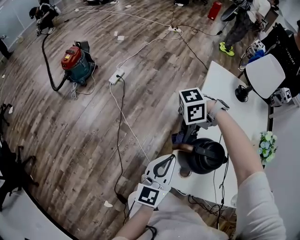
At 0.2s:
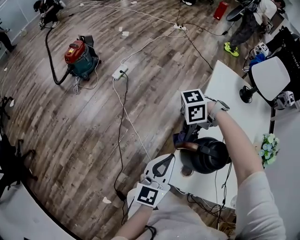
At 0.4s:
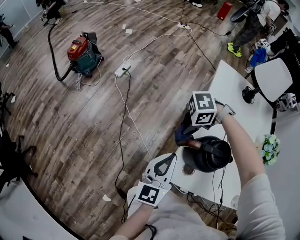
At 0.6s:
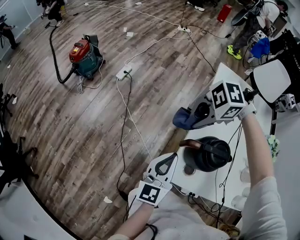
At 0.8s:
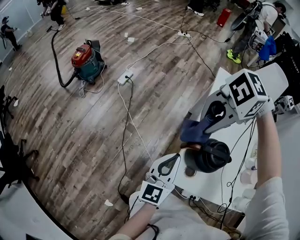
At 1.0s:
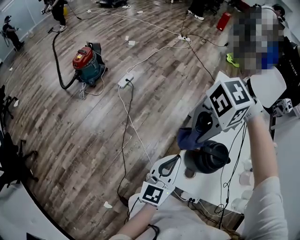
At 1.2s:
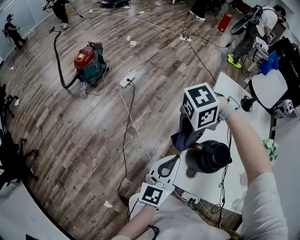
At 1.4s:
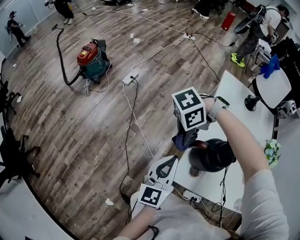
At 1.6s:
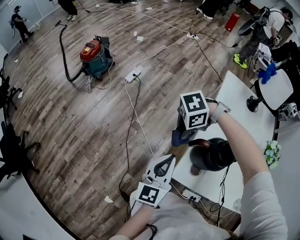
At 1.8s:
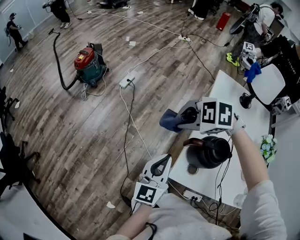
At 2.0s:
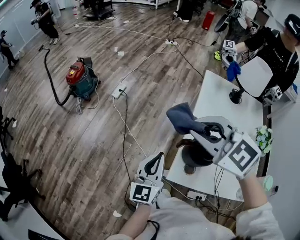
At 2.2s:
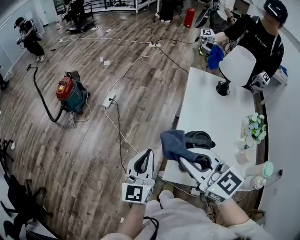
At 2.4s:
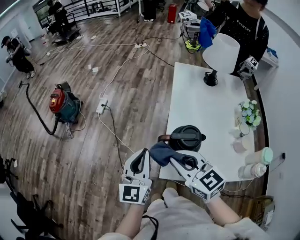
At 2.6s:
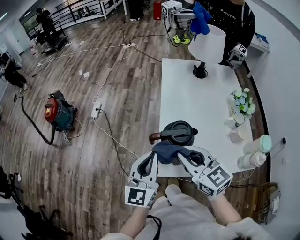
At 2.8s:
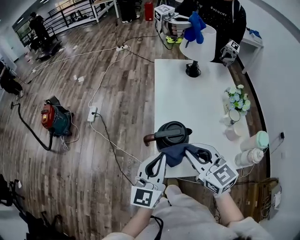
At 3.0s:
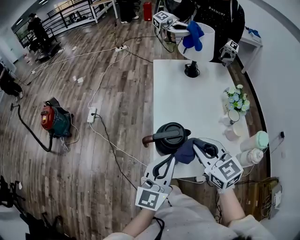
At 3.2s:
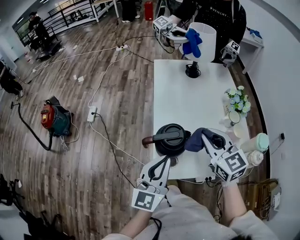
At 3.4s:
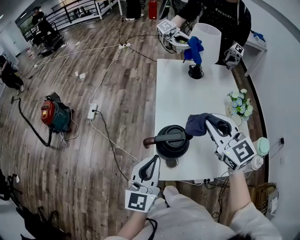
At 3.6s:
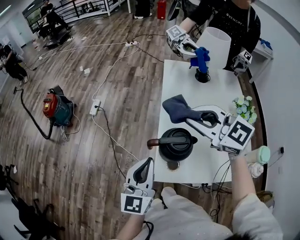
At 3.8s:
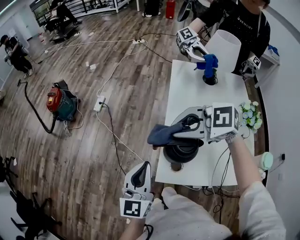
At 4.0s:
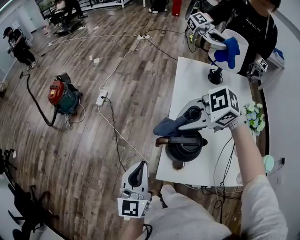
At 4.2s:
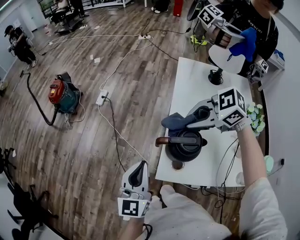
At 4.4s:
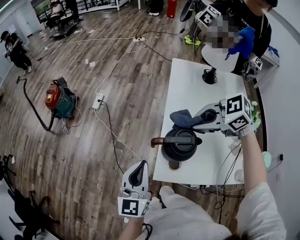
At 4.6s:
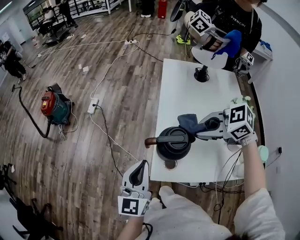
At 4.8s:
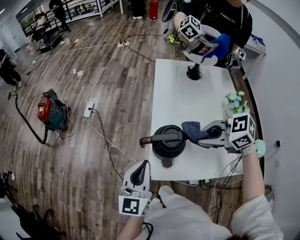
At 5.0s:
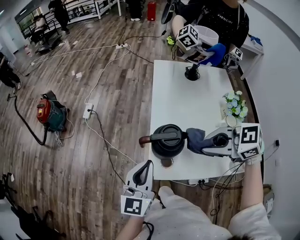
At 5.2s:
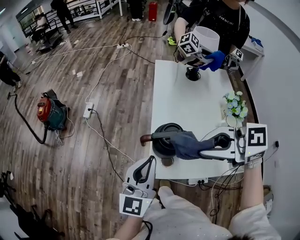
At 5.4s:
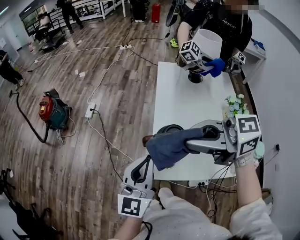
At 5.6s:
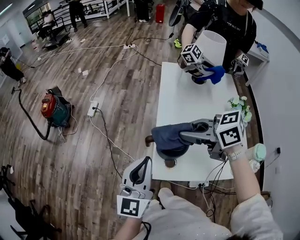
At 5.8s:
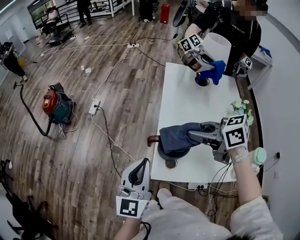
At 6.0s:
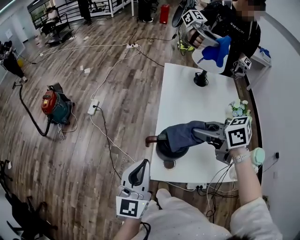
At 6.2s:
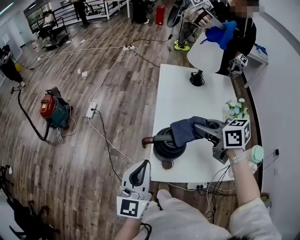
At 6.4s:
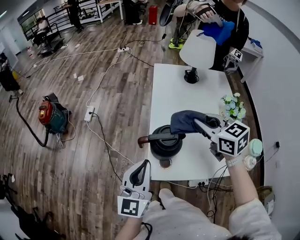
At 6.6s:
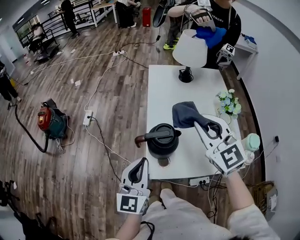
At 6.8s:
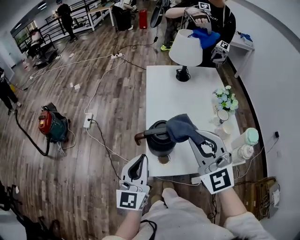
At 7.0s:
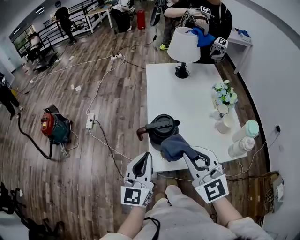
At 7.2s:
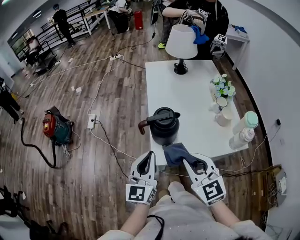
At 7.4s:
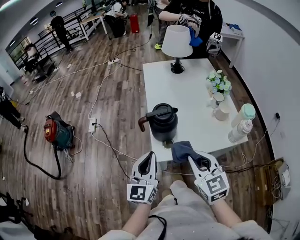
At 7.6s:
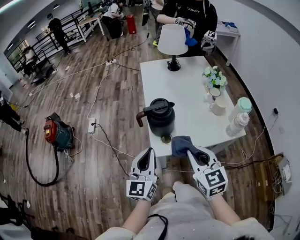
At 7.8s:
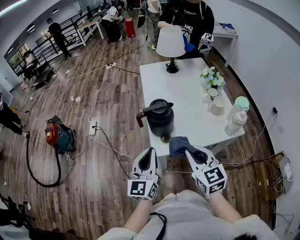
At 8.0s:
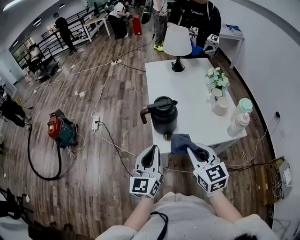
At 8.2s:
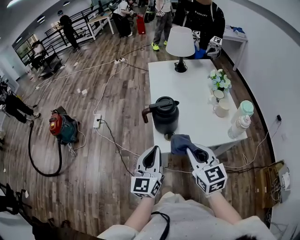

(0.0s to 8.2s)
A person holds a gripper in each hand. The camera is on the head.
0.0s - 1.6s: The right gripper goes up and down, about 20 cm each way, reversing 2 times, and swivels approximately 20 degrees, while the left gripper ends up some 5 cm from where it was.
1.6s - 3.2s: The left gripper shifts by roughly 15 cm, and changes its angle by roughly 30 degrees; the right gripper ends up roughly 30 cm from where it was, and tilts its fingers some 40 degrees upward.
3.2s - 5.0s: The right gripper reaches approximately 5 cm upward, then returns, and turns by about 50 degrees.
5.0s - 6.6s: The right gripper goes up and down, about 10 cm each way, reversing 2 times, and swivels approximately 60 degrees.
6.6s - 8.2s: The left gripper goes roughly 10 cm backward; the right gripper heads backward and downward, covering some 25 cm, and changes its angle by approximately 30 degrees.

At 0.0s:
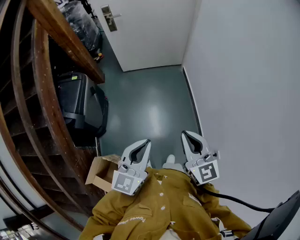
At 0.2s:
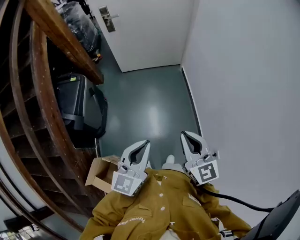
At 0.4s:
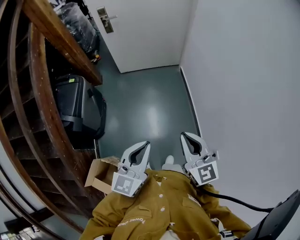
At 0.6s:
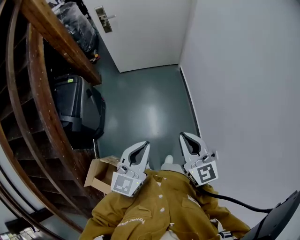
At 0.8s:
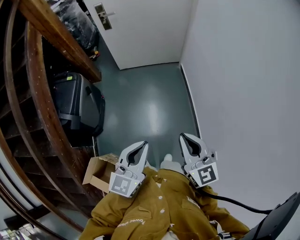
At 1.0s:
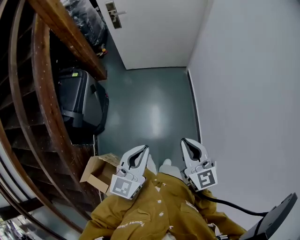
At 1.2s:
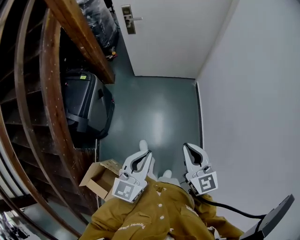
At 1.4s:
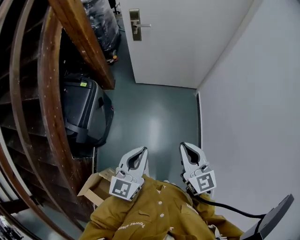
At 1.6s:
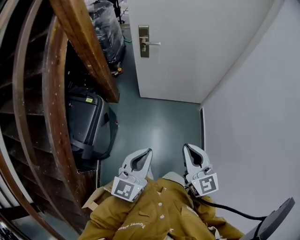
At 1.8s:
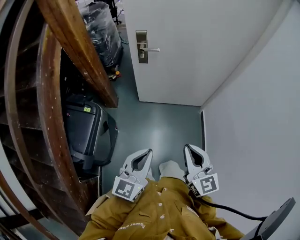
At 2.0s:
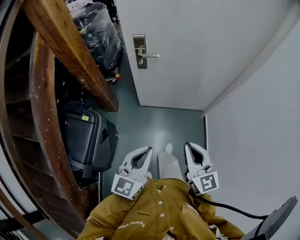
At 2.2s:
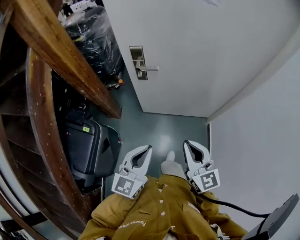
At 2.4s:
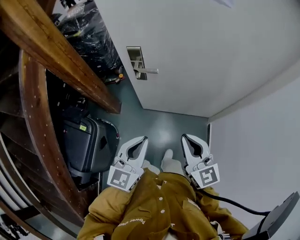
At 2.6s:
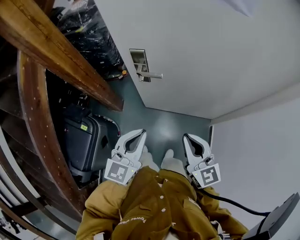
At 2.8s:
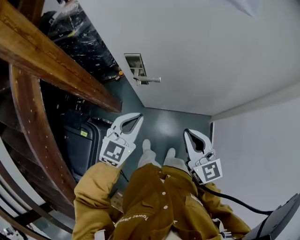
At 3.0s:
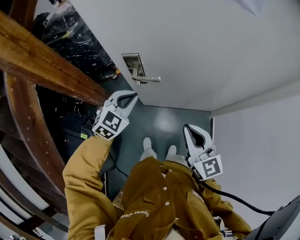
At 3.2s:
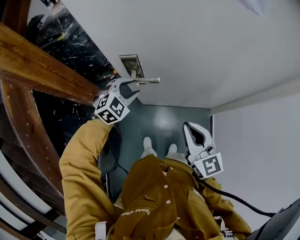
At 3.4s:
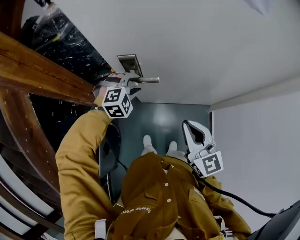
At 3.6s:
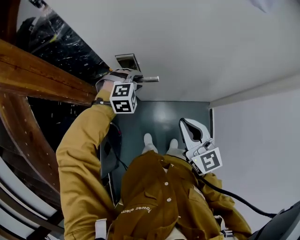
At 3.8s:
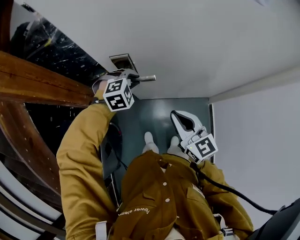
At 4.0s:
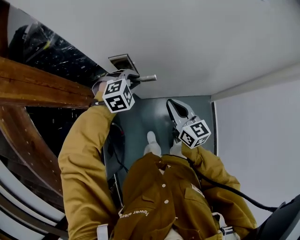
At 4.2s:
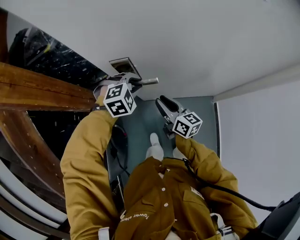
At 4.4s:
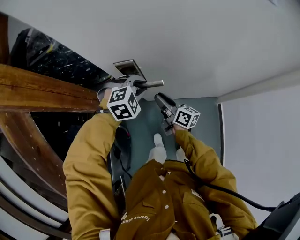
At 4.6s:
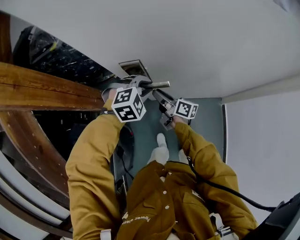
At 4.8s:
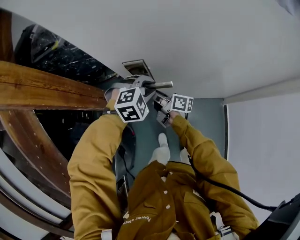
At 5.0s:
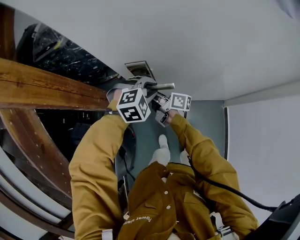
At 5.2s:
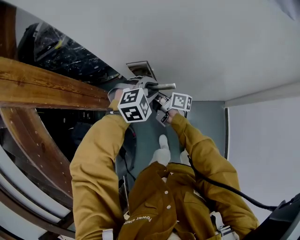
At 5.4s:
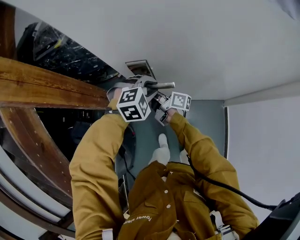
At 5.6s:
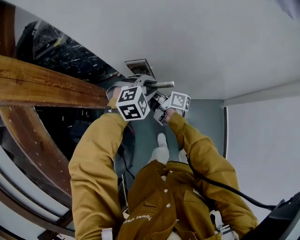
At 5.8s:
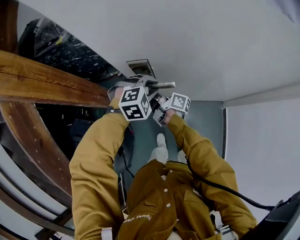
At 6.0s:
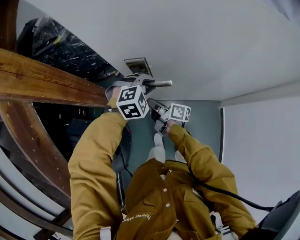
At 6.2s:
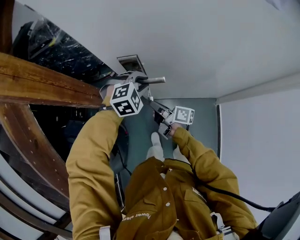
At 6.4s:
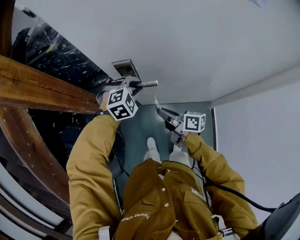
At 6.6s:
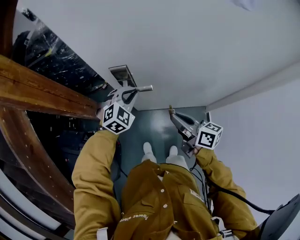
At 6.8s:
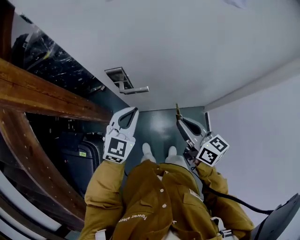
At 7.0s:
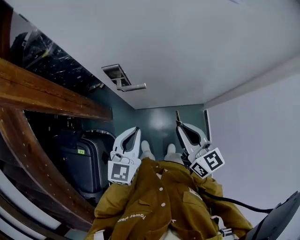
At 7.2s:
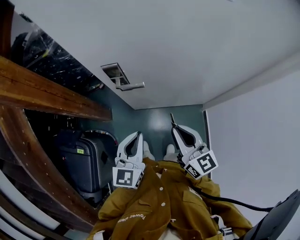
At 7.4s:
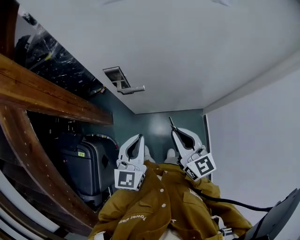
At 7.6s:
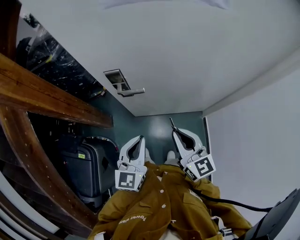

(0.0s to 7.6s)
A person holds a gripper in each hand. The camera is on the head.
0.0s - 1.6s: Both grippers travel together forward and to the left, roughly 35 cm.
1.6s - 3.0s: Both grippers are carried forward, about 60 cm. The left gripper tips its fingers downward by approximately 30 degrees.
3.0s - 4.6s: The right gripper is displaced downward, forward and to the left by roughly 30 cm, rolls clockwise, seen from behind, by about 60 degrees, and opens. The left gripper is displaced downward and forward by some 10 cm, turns by about 40 degrees, and opens its fingers.
4.6s - 6.0s: The right gripper shifts by some 5 cm, and closes.
6.0s - 7.6s: The left gripper is displaced backward and upward by approximately 25 cm, tips its fingers upward by approximately 50 degrees, and closes. The right gripper moves to the right, upward and backward, approximately 30 cm, and rotates around the line of its fingers by roughly 70 degrees, counterclockwise from behind.

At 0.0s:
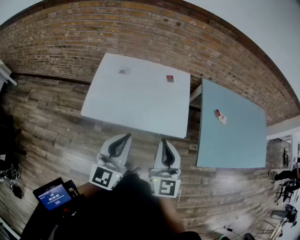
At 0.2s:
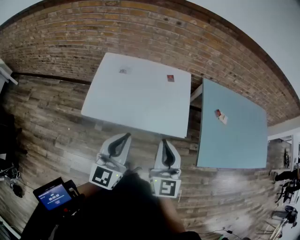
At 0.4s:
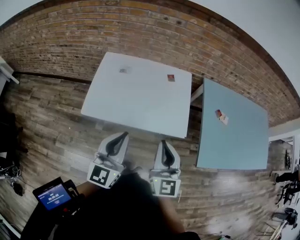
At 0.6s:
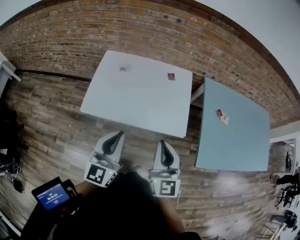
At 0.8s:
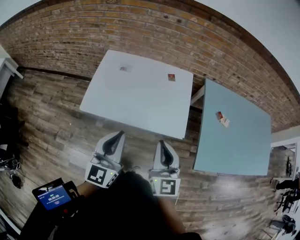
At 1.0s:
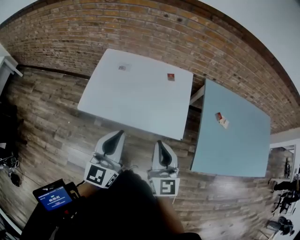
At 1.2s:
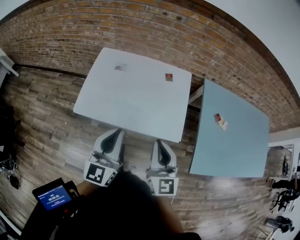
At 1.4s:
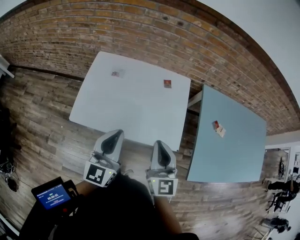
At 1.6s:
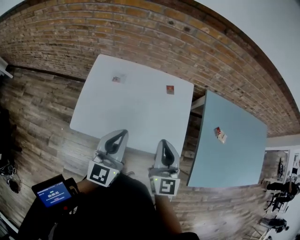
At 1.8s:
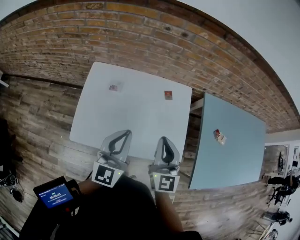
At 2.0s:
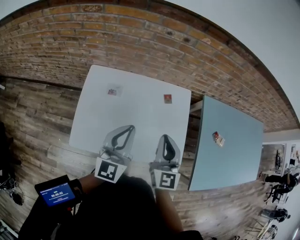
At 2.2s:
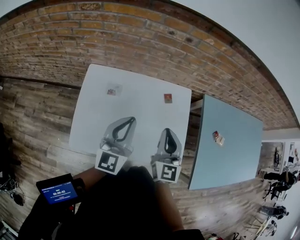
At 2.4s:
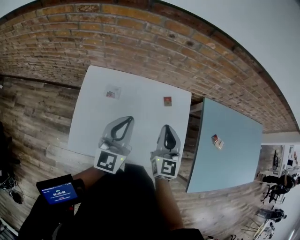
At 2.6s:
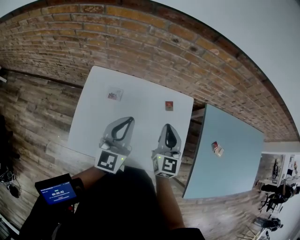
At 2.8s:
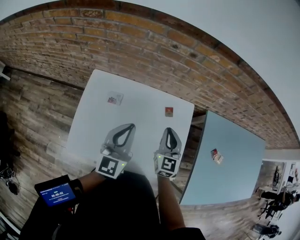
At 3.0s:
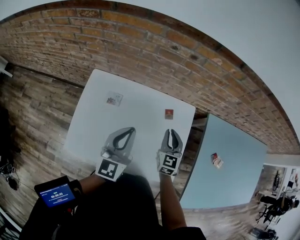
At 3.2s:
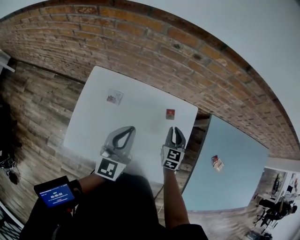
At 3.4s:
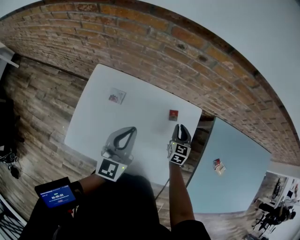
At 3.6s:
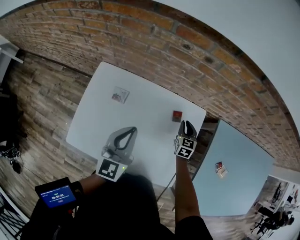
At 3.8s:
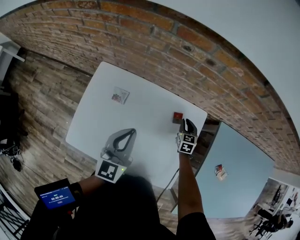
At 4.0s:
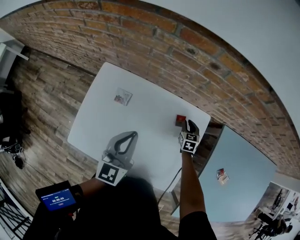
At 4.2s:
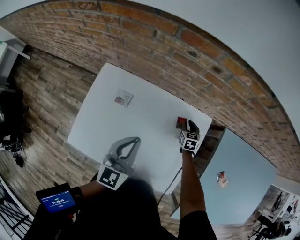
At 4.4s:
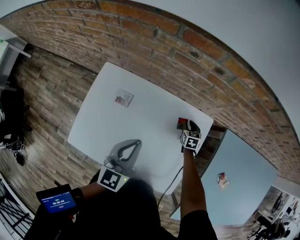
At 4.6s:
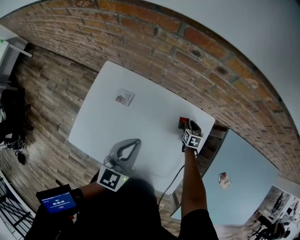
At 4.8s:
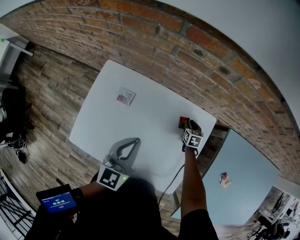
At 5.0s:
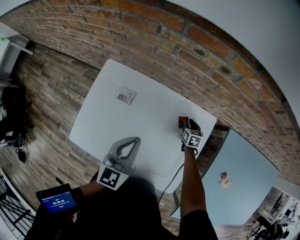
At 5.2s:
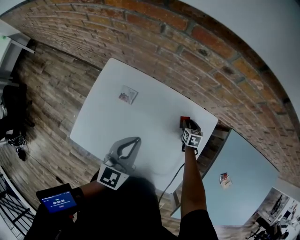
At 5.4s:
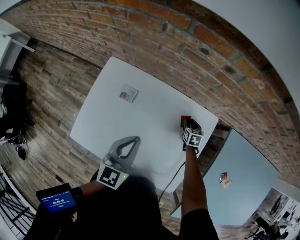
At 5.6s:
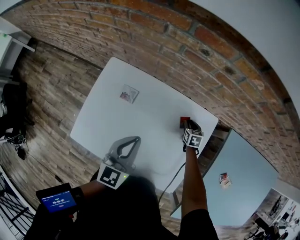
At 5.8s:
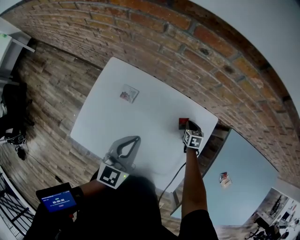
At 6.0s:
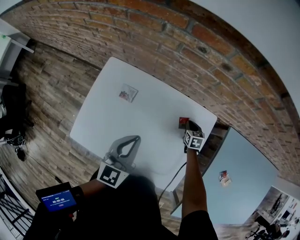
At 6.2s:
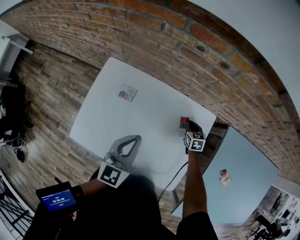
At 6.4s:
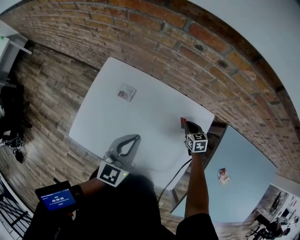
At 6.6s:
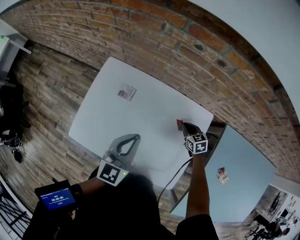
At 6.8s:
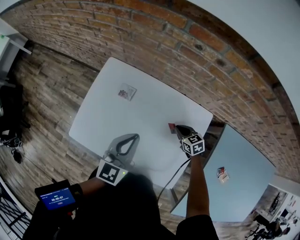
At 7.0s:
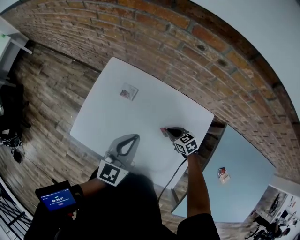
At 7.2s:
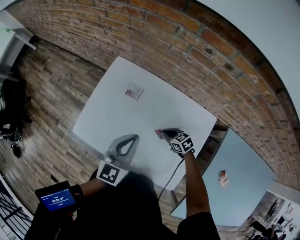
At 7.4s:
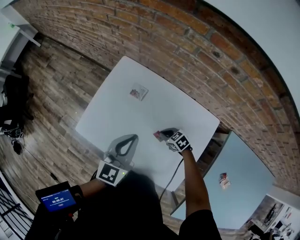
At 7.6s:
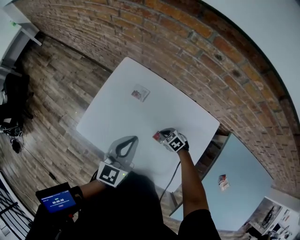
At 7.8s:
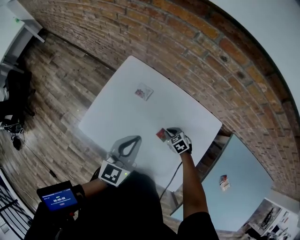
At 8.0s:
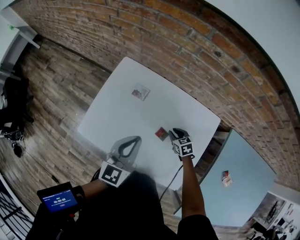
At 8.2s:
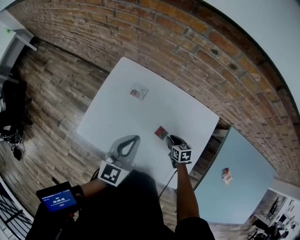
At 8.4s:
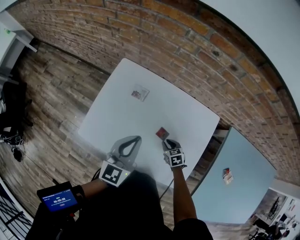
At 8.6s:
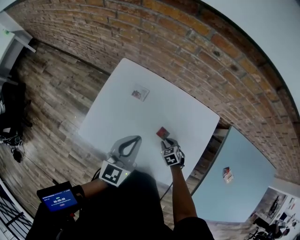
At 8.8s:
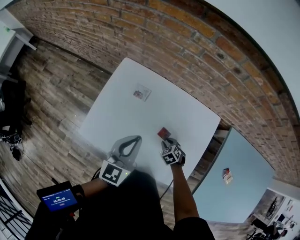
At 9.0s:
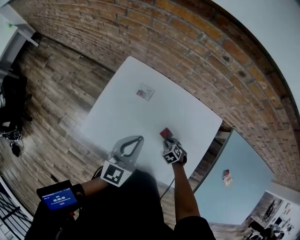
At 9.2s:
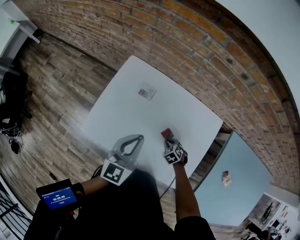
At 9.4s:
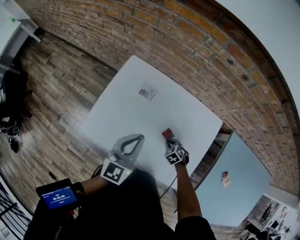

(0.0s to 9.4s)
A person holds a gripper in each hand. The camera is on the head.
0.0s - 1.6s: The grippers both shift forward by roughly 15 cm.
1.6s - 3.2s: The left gripper goes approximately 20 cm forward. The right gripper travels forward and downward by approximately 35 cm, and rotates some 30 degrees.
3.2s - 4.8s: The left gripper moves some 5 cm. The right gripper moves downward and forward, some 25 cm, and turns by some 30 degrees.
4.8s - 6.2s: The right gripper closes its fingers.
6.2s - 7.8s: The left gripper shifts by roughly 5 cm. The right gripper changes place by approximately 20 cm, and rotates about 50 degrees.
7.8s - 9.4s: The right gripper shifts about 10 cm backward.
